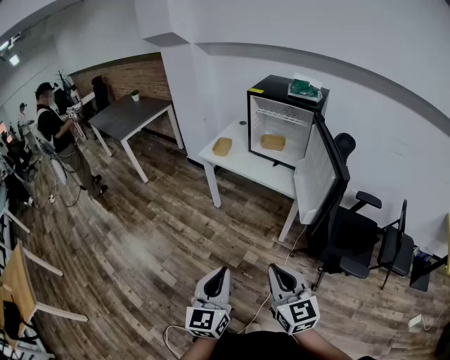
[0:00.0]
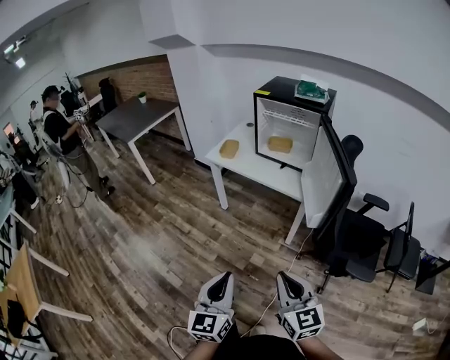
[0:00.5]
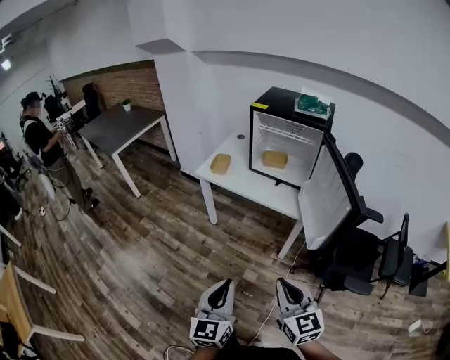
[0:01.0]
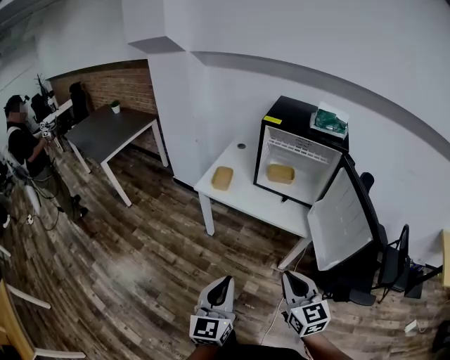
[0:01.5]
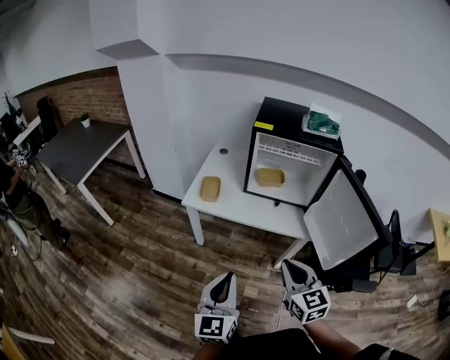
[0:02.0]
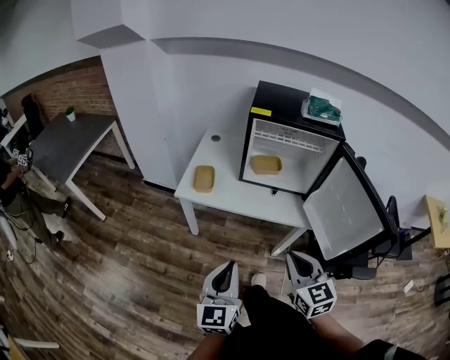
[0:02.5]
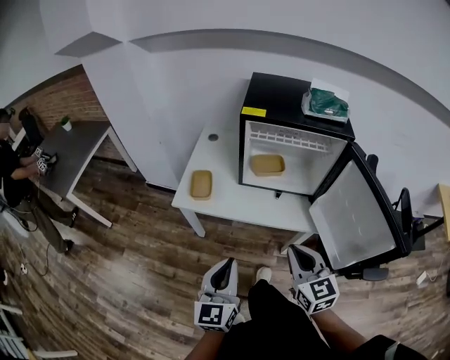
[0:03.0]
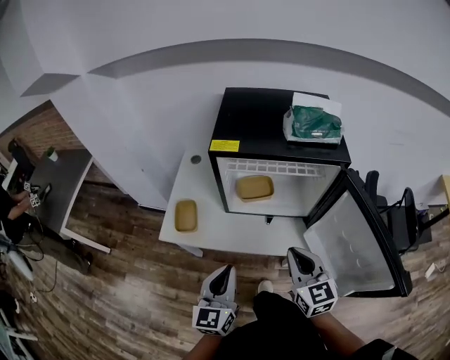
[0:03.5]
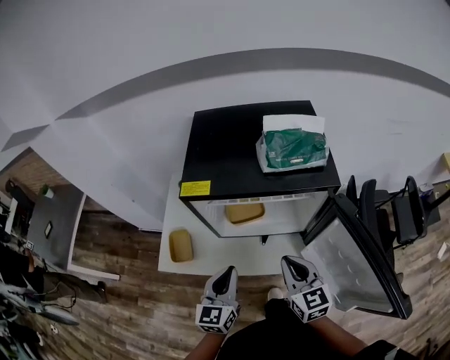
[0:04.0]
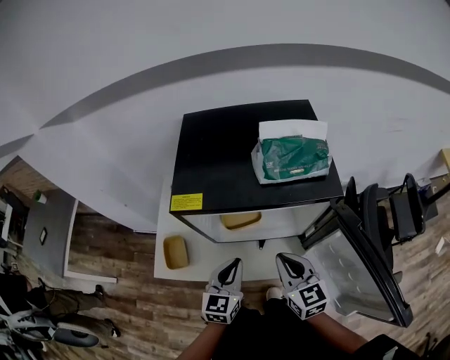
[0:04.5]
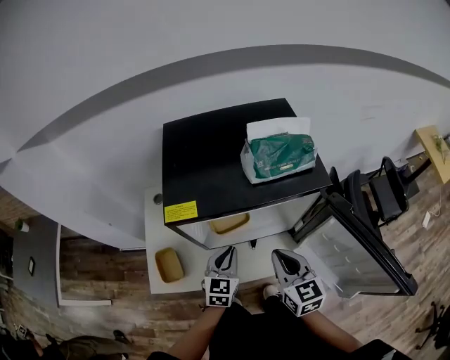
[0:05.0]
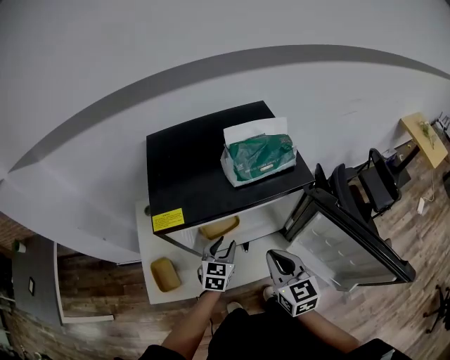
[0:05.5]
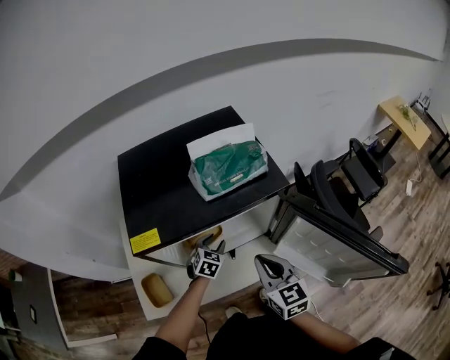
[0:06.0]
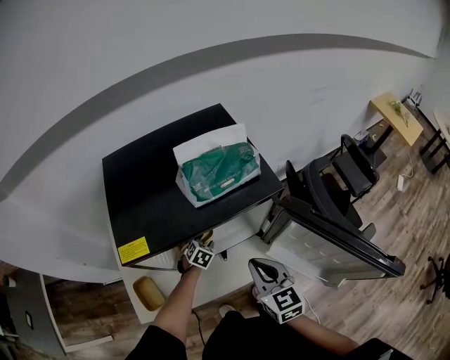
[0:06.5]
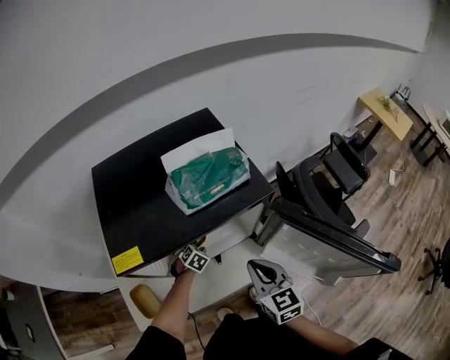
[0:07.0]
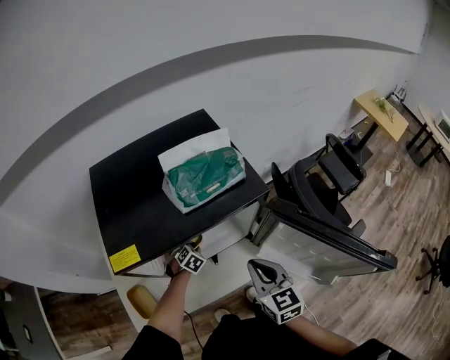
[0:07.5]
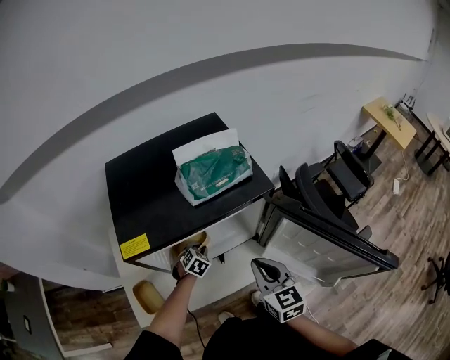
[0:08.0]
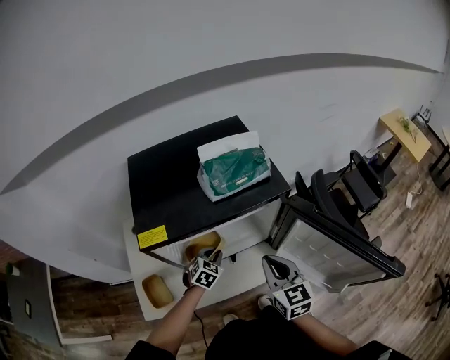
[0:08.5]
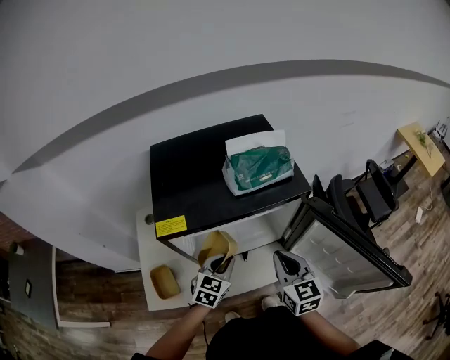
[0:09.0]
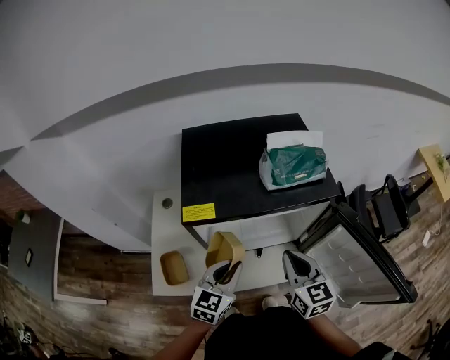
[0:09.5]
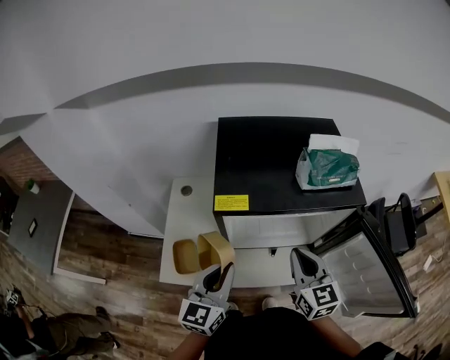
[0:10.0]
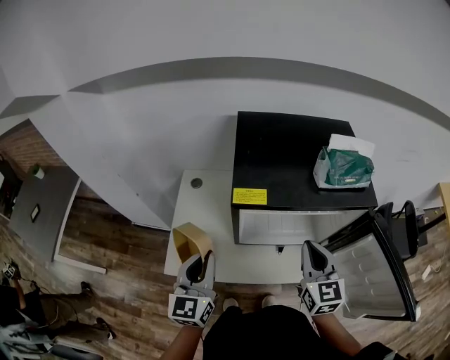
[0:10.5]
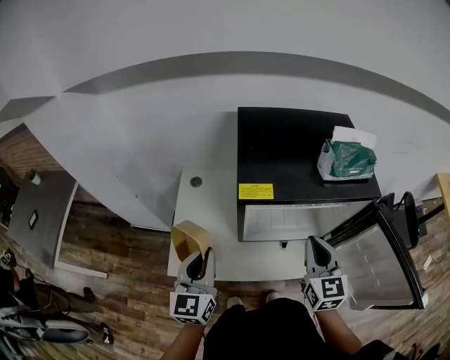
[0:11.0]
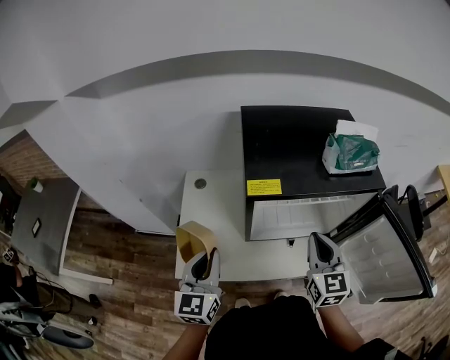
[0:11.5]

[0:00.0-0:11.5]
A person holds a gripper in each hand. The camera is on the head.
0:00.0 to 0:02.0: The right gripper moves forward, some 35 cm, and turns by about 20 degrees. Meanwhile the left gripper is displaced forward and to the left by roughly 35 cm.
0:02.0 to 0:04.0: Both grippers move forward, about 35 cm. The left gripper changes its angle by roughly 20 degrees.
0:04.0 to 0:06.0: The left gripper travels forward and downward by roughly 30 cm, tips its fingers downward by approximately 30 degrees, and opens up.
0:06.0 to 0:07.5: The left gripper is displaced downward by some 10 cm, and changes its angle by roughly 20 degrees.
0:07.5 to 0:09.5: The right gripper travels to the left by approximately 5 cm. Meanwhile the left gripper travels upward and backward by some 35 cm, and points its fingers some 40 degrees further upward.
0:09.5 to 0:11.5: The left gripper travels to the left by some 20 cm, and rotates some 30 degrees, while the right gripper goes about 5 cm to the left.

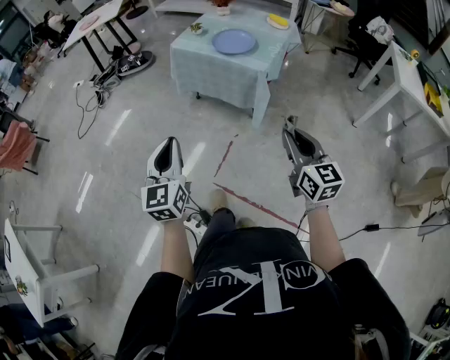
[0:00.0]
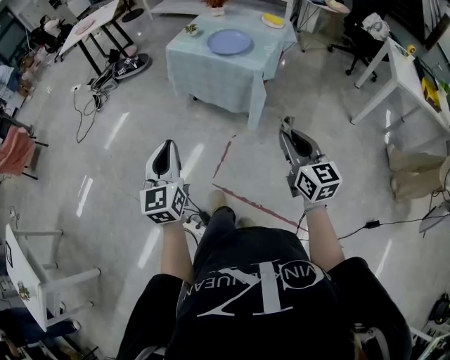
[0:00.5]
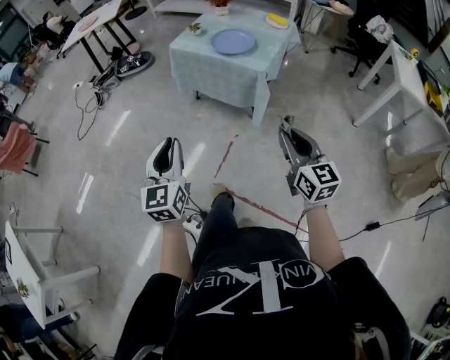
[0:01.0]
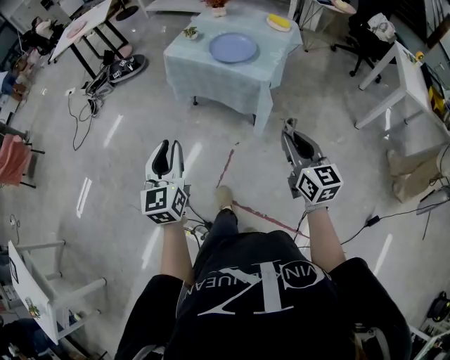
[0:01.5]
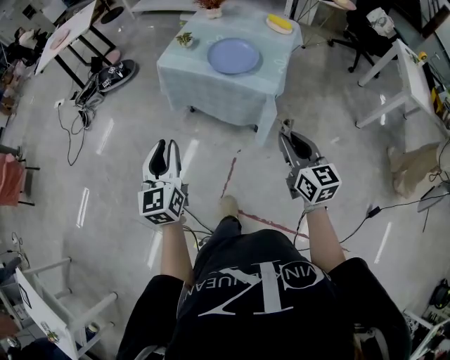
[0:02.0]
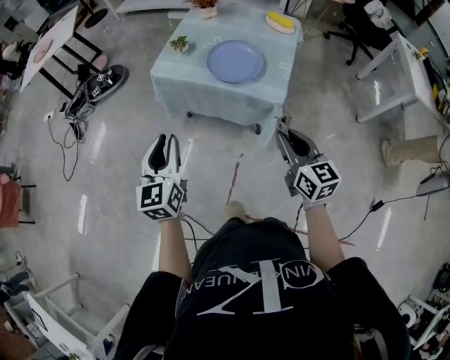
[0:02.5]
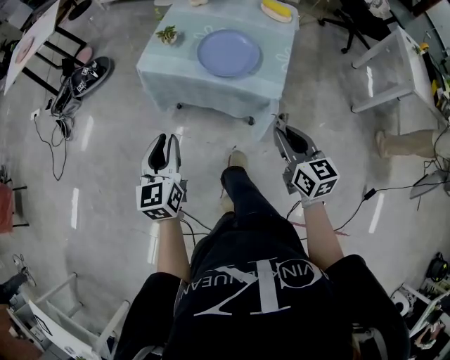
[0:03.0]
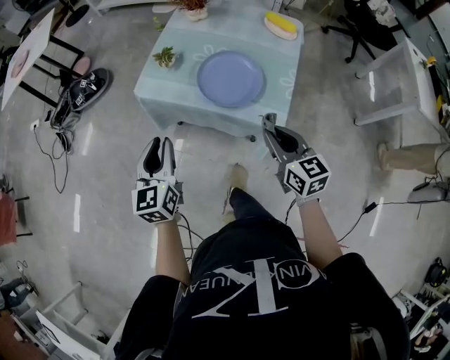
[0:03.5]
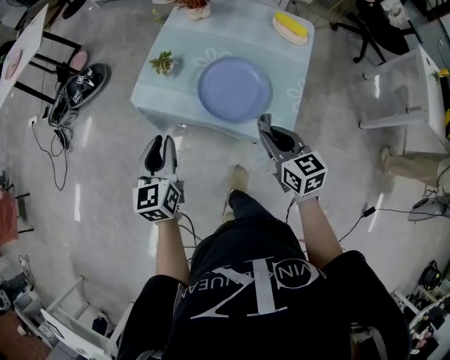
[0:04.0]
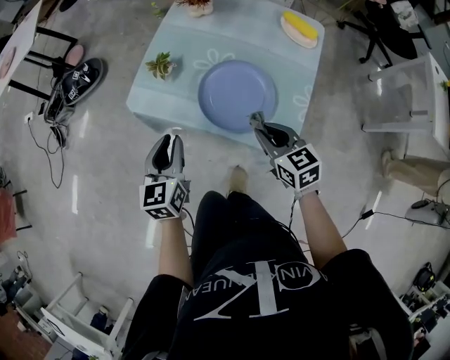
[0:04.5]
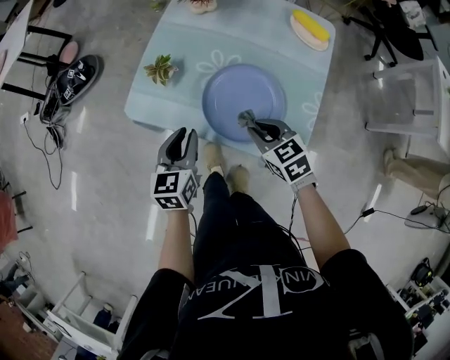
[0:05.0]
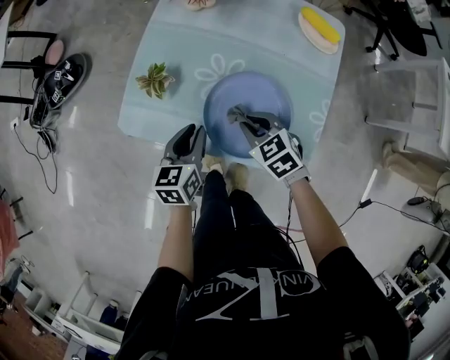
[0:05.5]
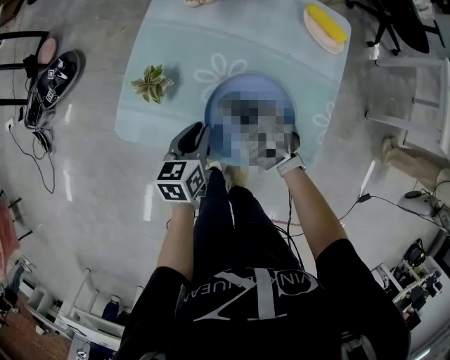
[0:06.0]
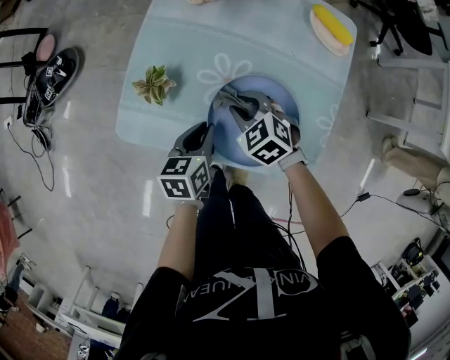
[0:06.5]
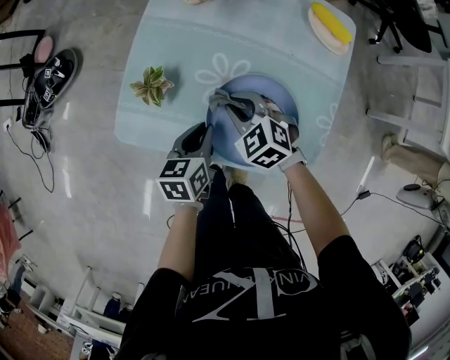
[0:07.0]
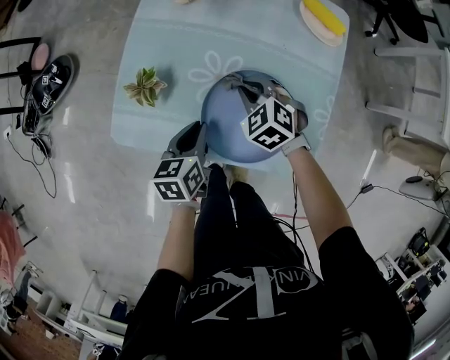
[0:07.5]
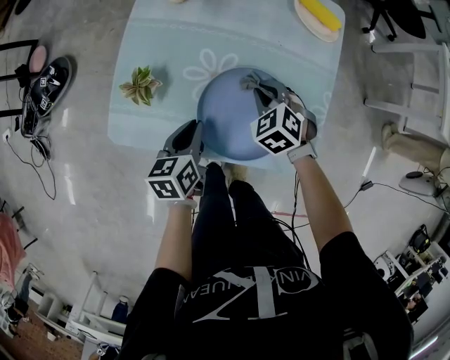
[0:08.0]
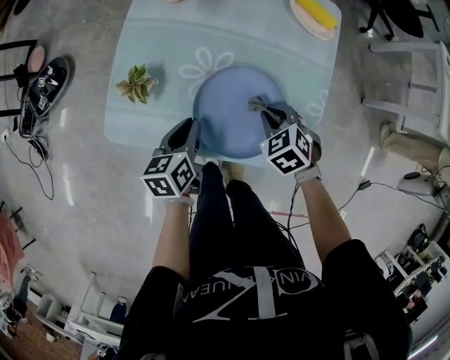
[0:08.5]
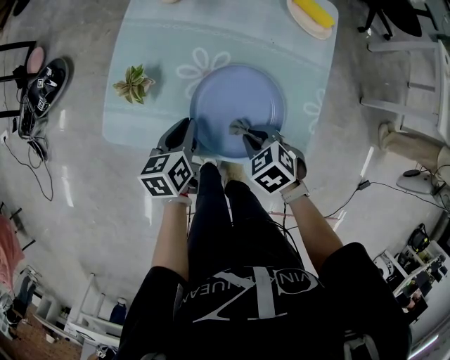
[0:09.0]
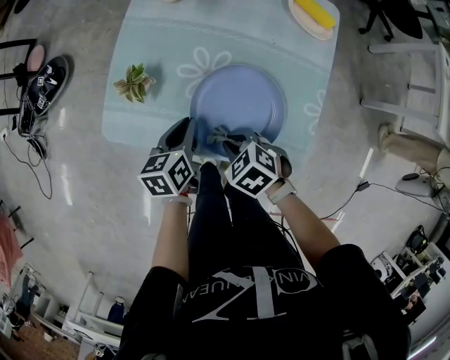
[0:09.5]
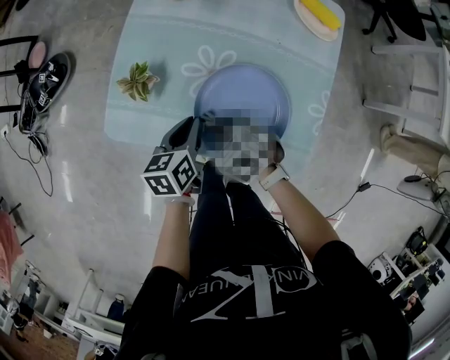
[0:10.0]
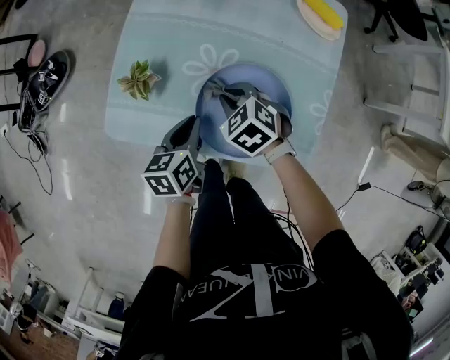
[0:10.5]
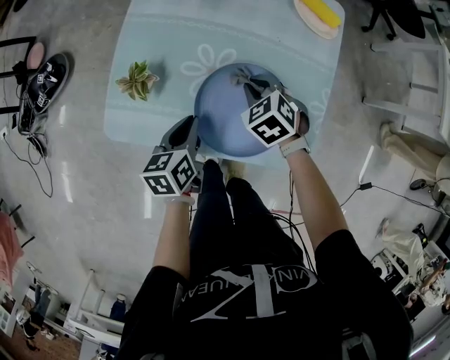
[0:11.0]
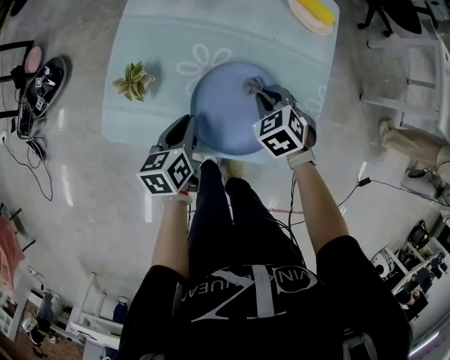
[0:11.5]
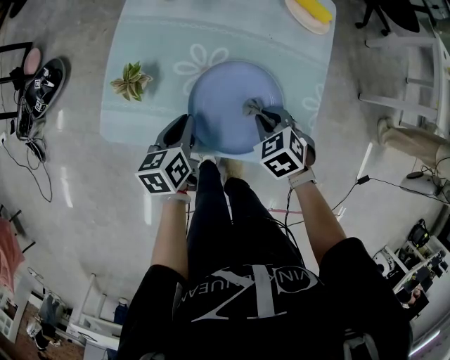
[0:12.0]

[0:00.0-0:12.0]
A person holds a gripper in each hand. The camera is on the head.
0:00.0 to 0:02.0: Both grippers travel together forward, approximately 25 cm.
0:02.0 to 0:04.0: The two grippers go about 35 cm forward.
0:04.0 to 0:06.0: The left gripper moves forward, downward and to the right, roughly 30 cm, and swivels roughly 30 degrees, while the right gripper travels forward and downward by about 30 cm, and rotates some 40 degrees.
0:06.0 to 0:08.0: The right gripper is displaced to the right by some 10 cm.
0:08.0 to 0:10.0: The right gripper changes place by about 15 cm, and changes its angle by roughly 20 degrees.
0:10.0 to 0:12.0: The right gripper heads to the right, covering approximately 15 cm.

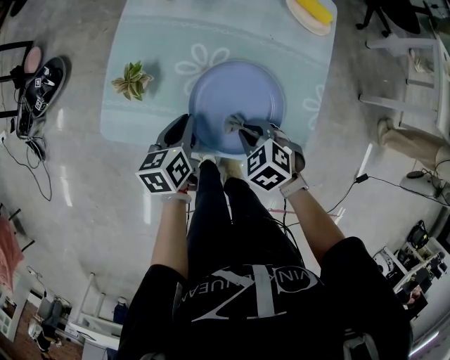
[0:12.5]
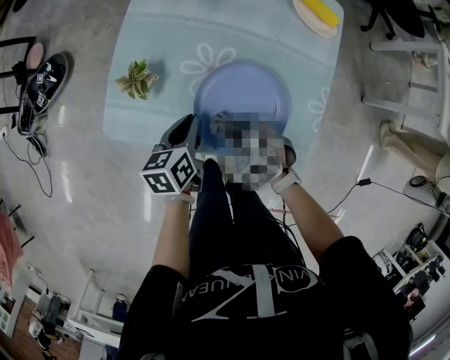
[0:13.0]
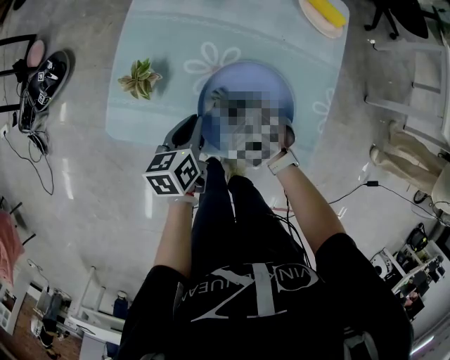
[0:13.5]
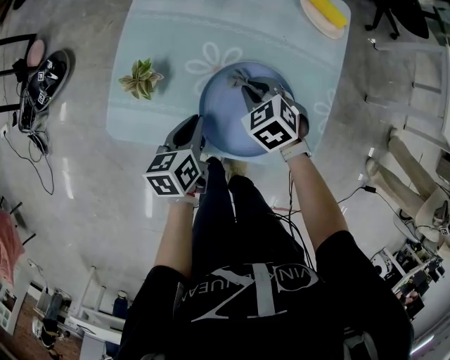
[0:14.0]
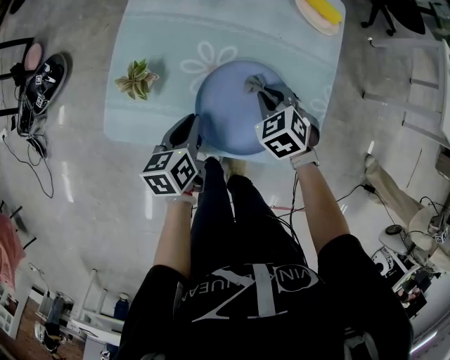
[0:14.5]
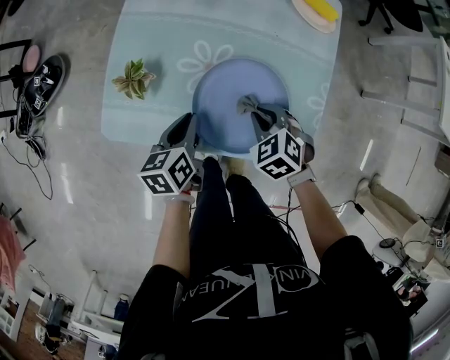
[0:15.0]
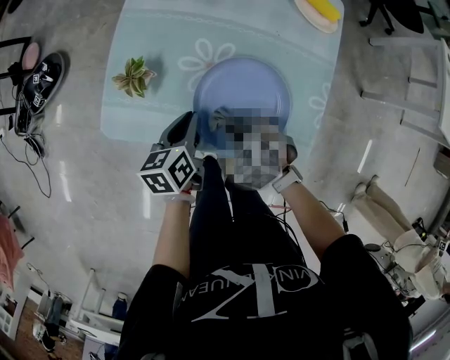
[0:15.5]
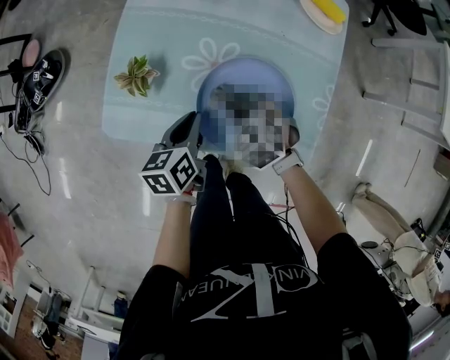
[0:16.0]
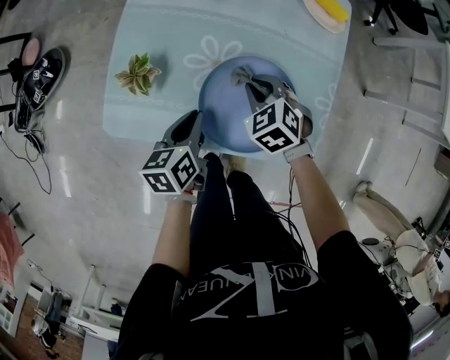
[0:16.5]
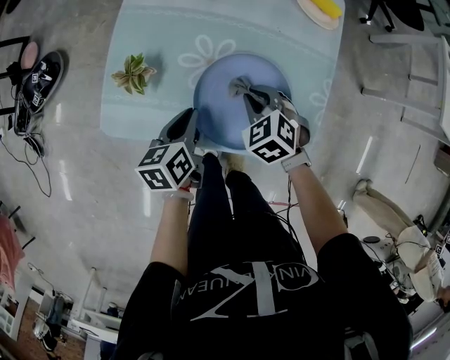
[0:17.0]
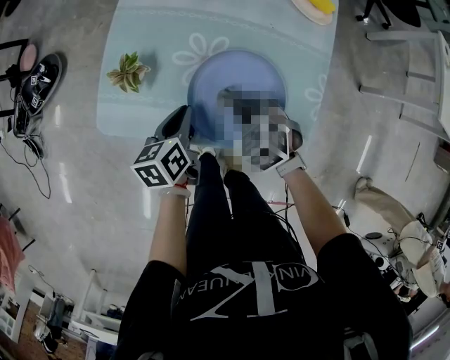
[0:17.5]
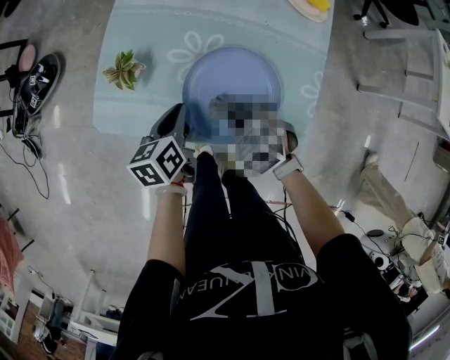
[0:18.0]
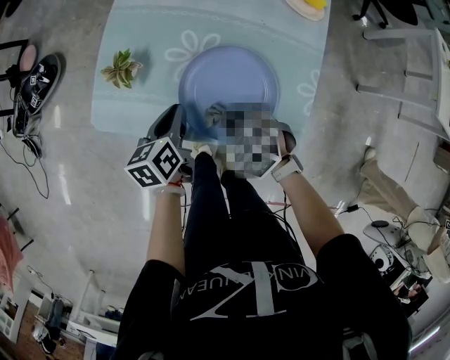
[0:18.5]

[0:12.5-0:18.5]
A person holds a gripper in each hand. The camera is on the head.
0:12.5 to 0:14.5: The right gripper heads forward, covering some 10 cm.
0:14.5 to 0:16.5: The right gripper moves some 10 cm backward and comes back.
0:16.5 to 0:18.5: The right gripper is displaced backward by roughly 10 cm.
